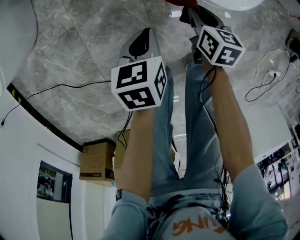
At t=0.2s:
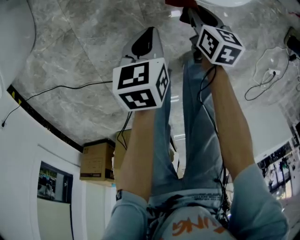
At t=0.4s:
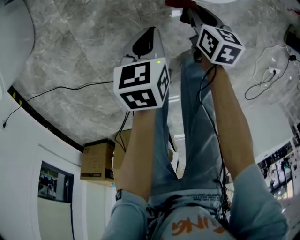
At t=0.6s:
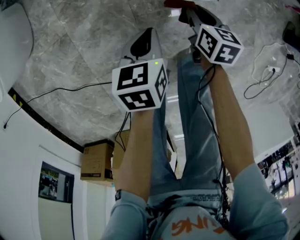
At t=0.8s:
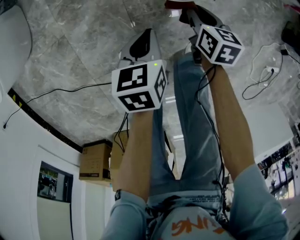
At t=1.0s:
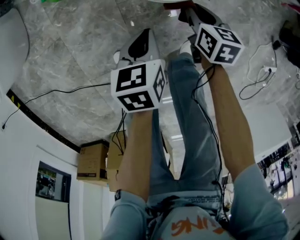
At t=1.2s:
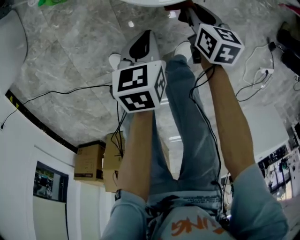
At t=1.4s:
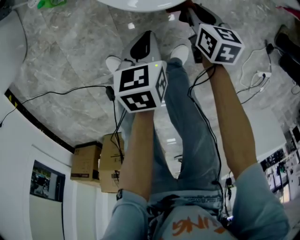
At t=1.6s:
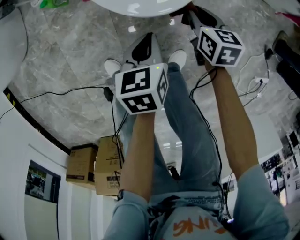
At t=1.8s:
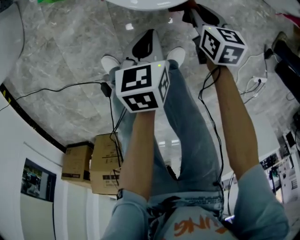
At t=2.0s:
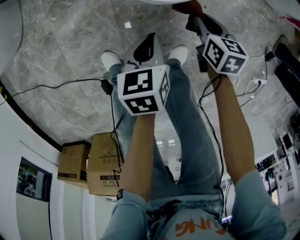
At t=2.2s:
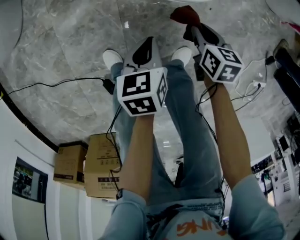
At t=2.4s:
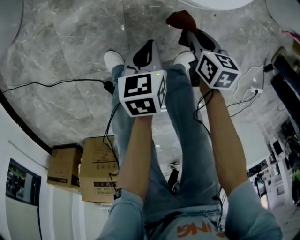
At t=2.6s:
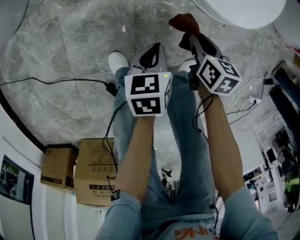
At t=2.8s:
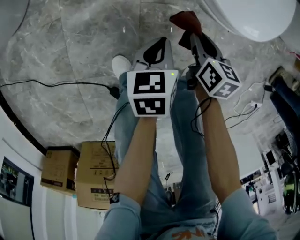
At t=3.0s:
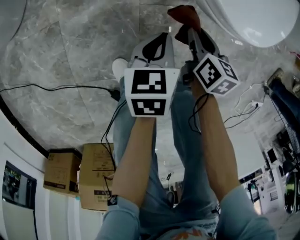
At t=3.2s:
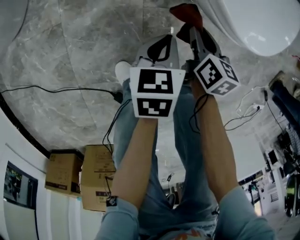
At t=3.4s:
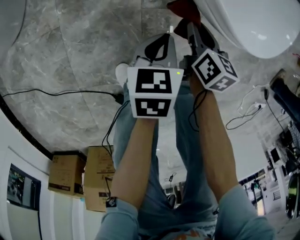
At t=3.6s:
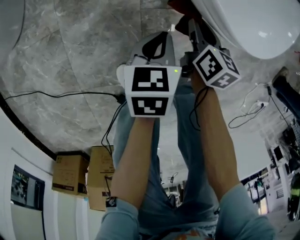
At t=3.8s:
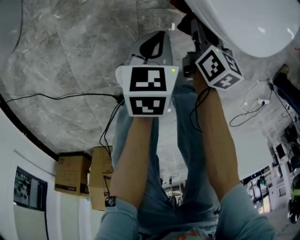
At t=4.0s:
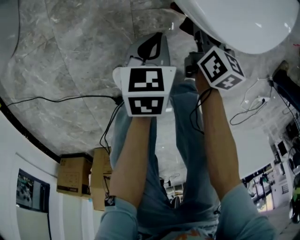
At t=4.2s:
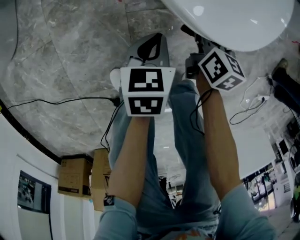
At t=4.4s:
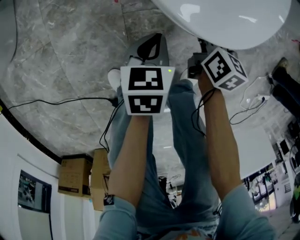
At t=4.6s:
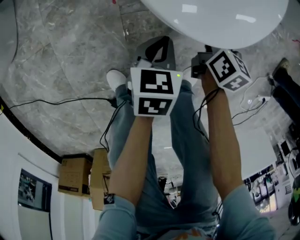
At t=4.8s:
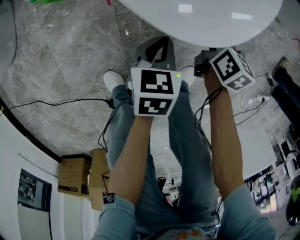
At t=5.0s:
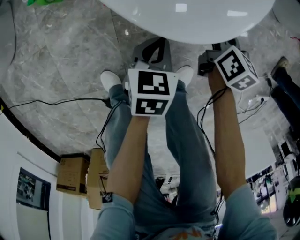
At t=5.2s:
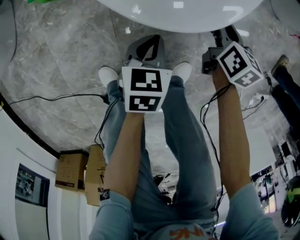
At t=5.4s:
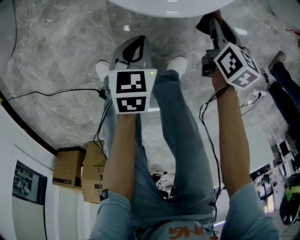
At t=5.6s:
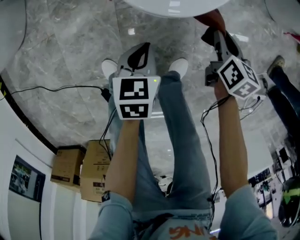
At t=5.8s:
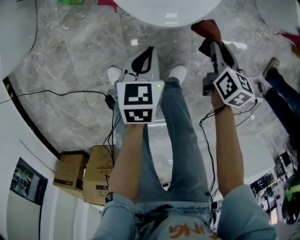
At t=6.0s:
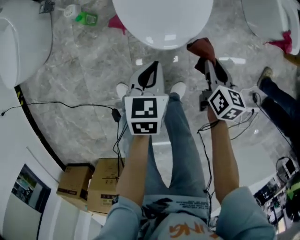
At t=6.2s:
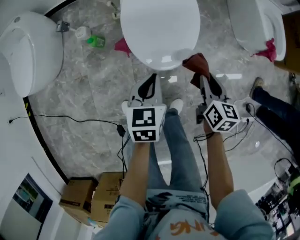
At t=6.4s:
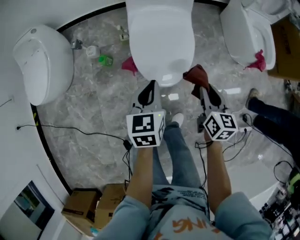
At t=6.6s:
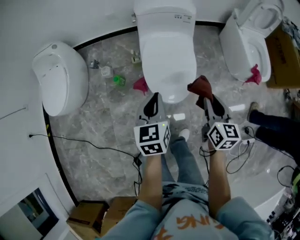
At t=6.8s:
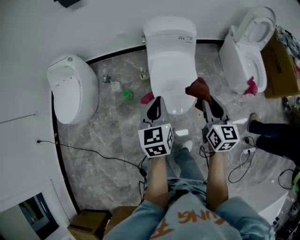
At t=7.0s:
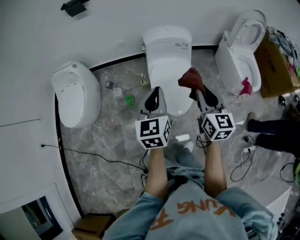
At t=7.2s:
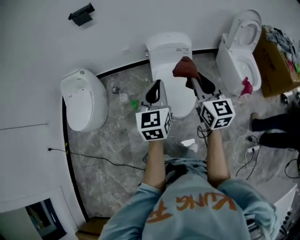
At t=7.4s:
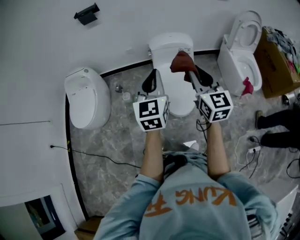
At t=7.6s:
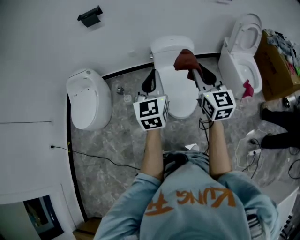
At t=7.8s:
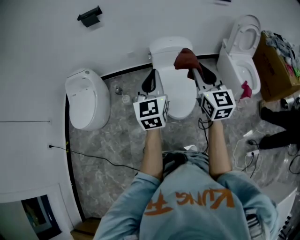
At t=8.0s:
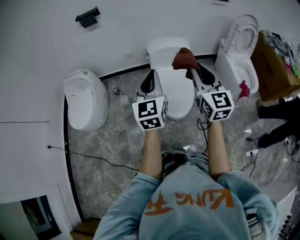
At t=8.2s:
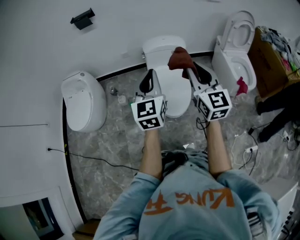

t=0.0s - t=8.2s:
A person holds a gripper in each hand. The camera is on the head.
t=0.0s - t=1.6s: The two grippers go some 20 cm to the right.
t=1.6s - t=3.2s: Both grippers move to the left and downward, roughly 20 cm.
t=3.2s - t=5.0s: The right gripper shifts approximately 20 cm to the right and forward; the left gripper moves to the right, approximately 10 cm.
t=5.0s - t=6.6s: Both grippers move upward, approximately 50 cm. The right gripper changes its angle by approximately 20 degrees. Meanwhile the left gripper rotates approximately 30 degrees.
t=6.6s - t=8.2s: Both grippers travel together upward, approximately 30 cm. The right gripper rotates some 40 degrees. Meanwhile the left gripper rotates approximately 30 degrees.

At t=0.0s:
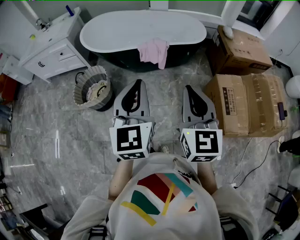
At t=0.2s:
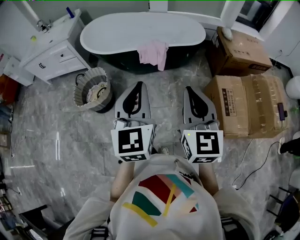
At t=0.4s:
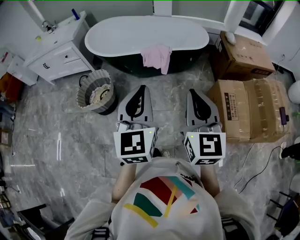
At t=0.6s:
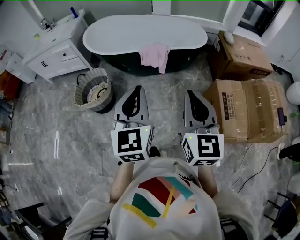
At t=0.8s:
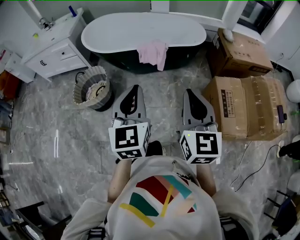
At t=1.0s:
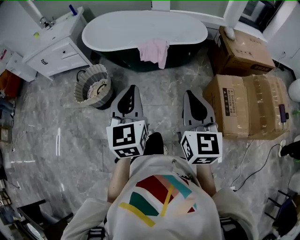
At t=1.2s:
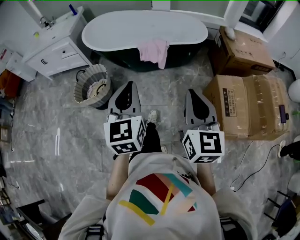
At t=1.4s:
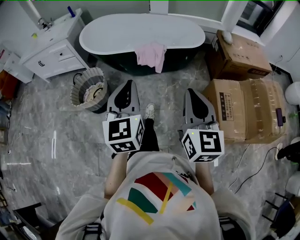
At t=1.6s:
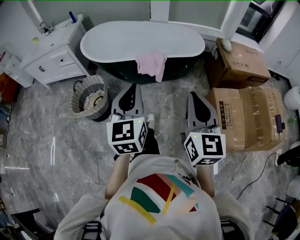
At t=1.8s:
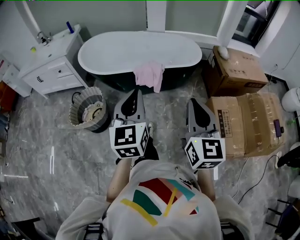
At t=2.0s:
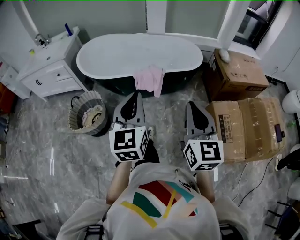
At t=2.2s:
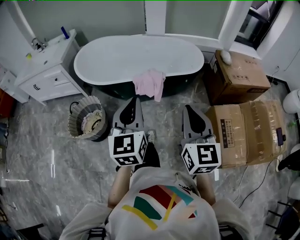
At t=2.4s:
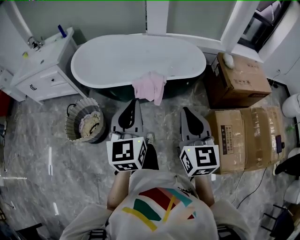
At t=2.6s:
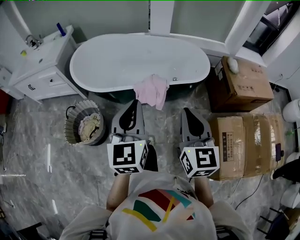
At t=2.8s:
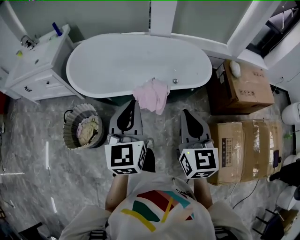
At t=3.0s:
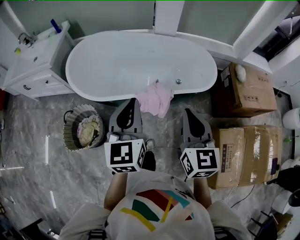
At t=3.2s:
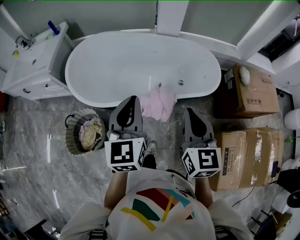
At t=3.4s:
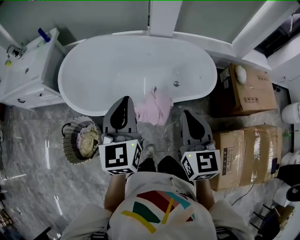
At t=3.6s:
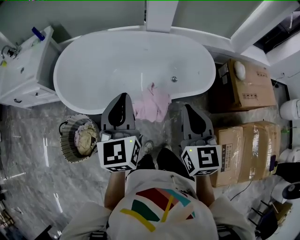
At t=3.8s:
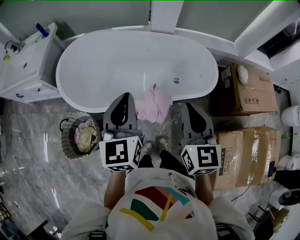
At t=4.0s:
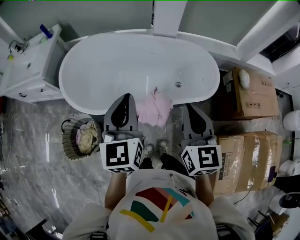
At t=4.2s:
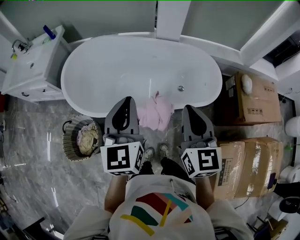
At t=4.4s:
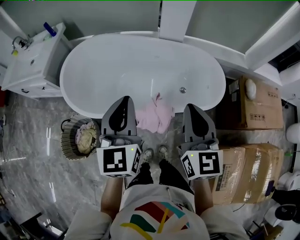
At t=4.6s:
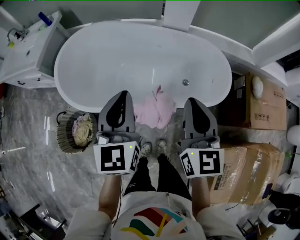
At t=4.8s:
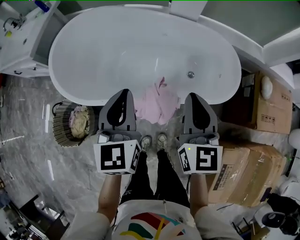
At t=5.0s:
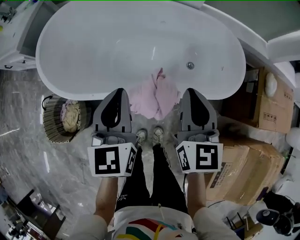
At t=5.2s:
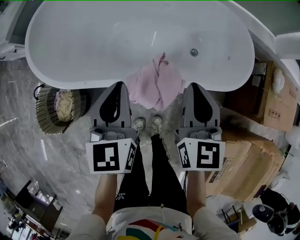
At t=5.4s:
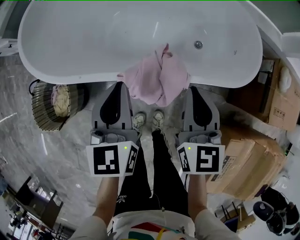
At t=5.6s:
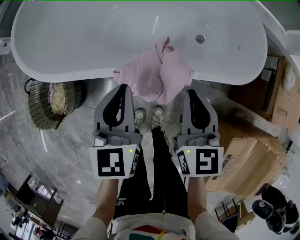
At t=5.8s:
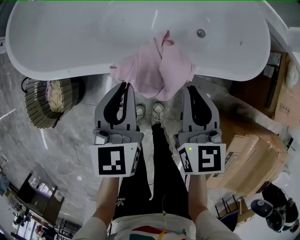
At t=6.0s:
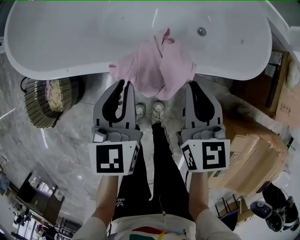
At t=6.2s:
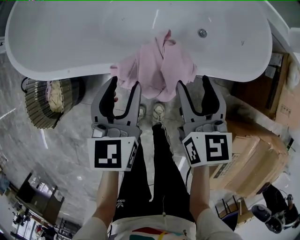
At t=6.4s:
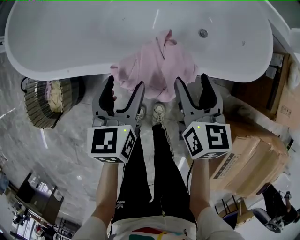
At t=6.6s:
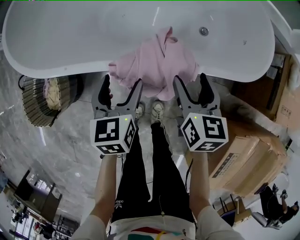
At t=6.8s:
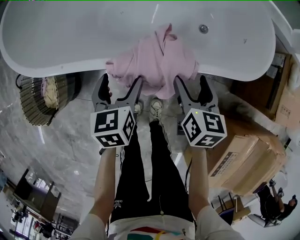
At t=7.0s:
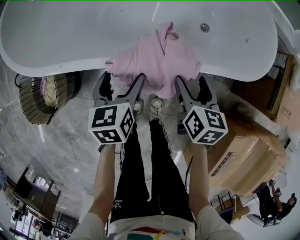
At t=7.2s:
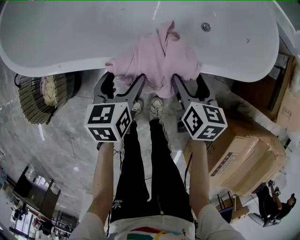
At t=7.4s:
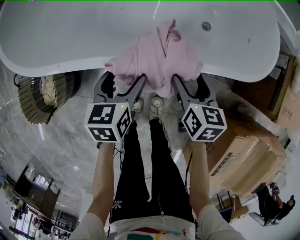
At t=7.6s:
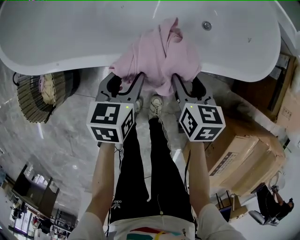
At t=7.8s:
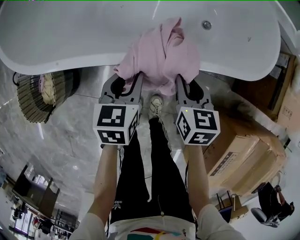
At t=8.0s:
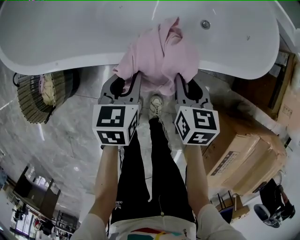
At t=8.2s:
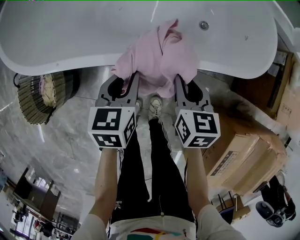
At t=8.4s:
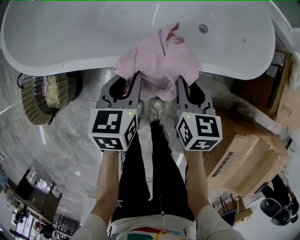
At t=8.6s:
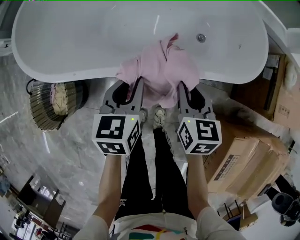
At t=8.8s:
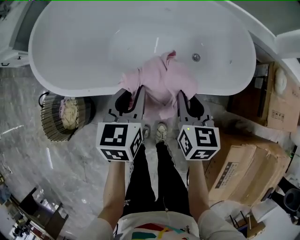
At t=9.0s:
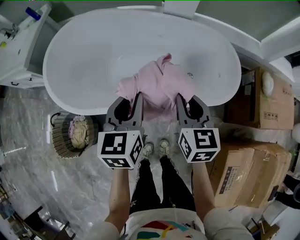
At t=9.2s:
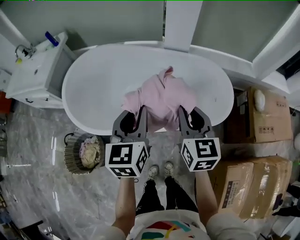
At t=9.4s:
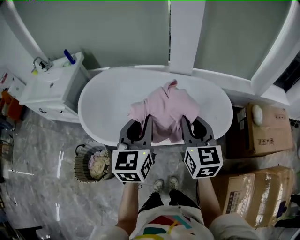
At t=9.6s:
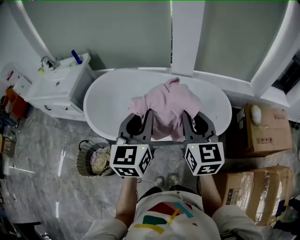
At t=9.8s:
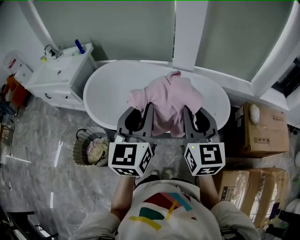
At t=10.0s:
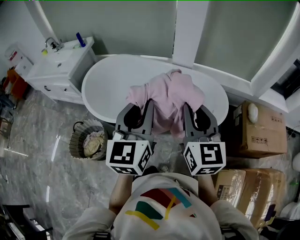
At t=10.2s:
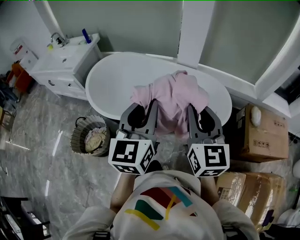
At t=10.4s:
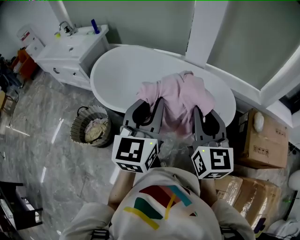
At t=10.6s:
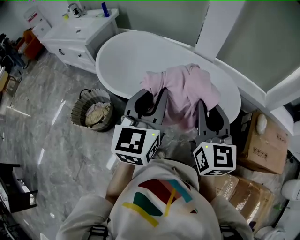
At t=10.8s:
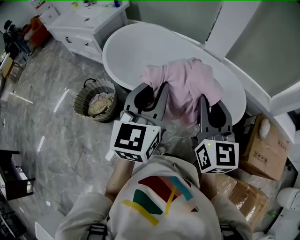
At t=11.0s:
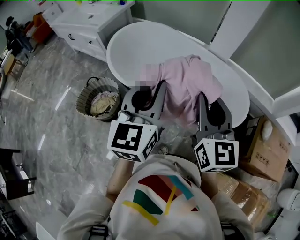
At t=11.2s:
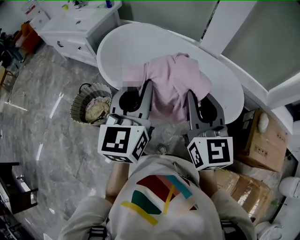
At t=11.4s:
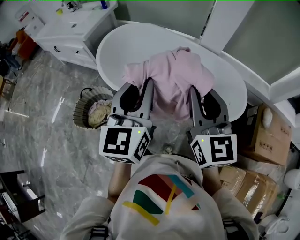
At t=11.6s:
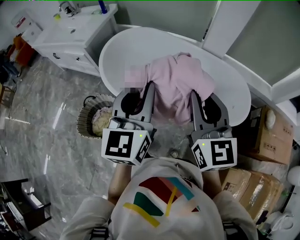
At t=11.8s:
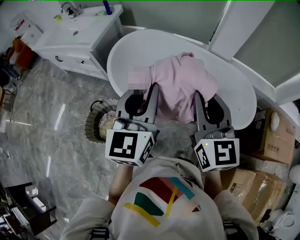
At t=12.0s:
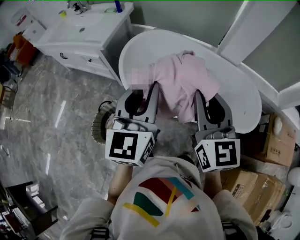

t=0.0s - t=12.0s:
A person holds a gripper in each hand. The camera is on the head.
t=0.0s - t=1.6s: The right gripper changes place by some 5 cm. The left gripper changes place by approximately 5 cm.
t=1.6s - t=3.0s: The grippers both shift forward by approximately 35 cm.
t=3.0s - t=4.4s: Both grippers travel together forward, about 15 cm.
t=4.4s - t=6.0s: The two grippers go some 35 cm downward. The right gripper turns by some 20 degrees. The left gripper turns by about 20 degrees.
t=6.0s - t=7.6s: The two grippers go approximately 15 cm downward. The right gripper changes its angle by about 20 degrees, and opens up, while the left gripper swivels roughly 20 degrees, and opens.
t=7.6s - t=9.0s: The two grippers go about 30 cm upward. The right gripper rotates some 20 degrees, and closes up; the left gripper turns by roughly 20 degrees.
t=9.0s - t=10.4s: The two grippers go approximately 30 cm upward and backward. The right gripper turns by some 30 degrees. Meanwhile the left gripper changes its angle by about 20 degrees.
t=10.4s - t=12.0s: Both grippers move to the left and forward, roughly 35 cm.

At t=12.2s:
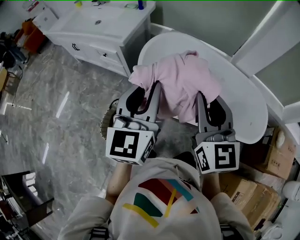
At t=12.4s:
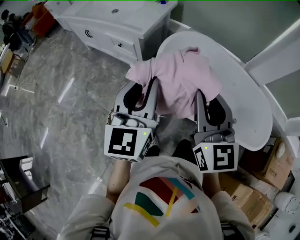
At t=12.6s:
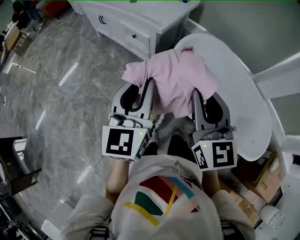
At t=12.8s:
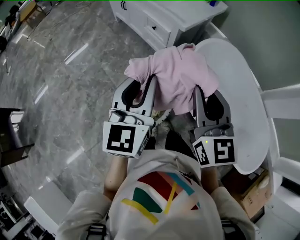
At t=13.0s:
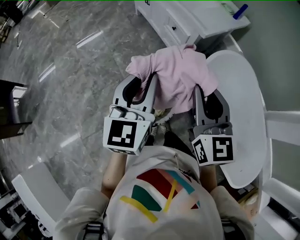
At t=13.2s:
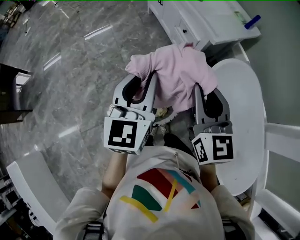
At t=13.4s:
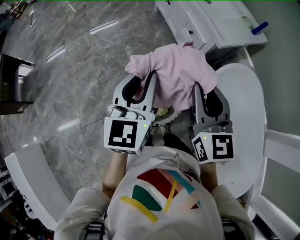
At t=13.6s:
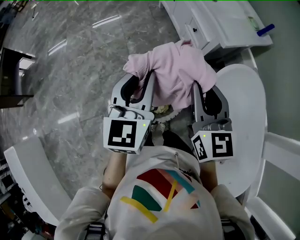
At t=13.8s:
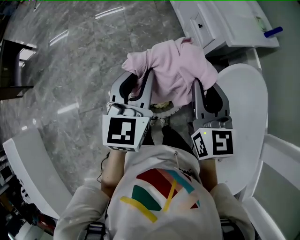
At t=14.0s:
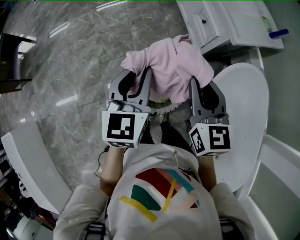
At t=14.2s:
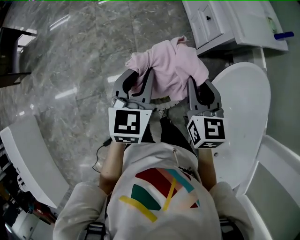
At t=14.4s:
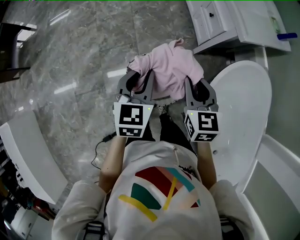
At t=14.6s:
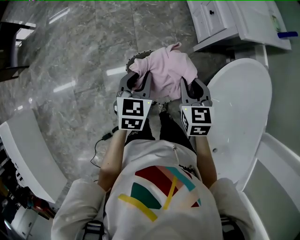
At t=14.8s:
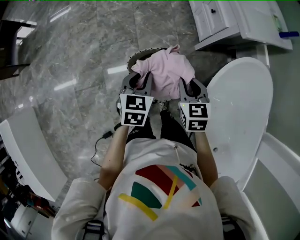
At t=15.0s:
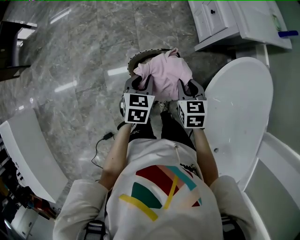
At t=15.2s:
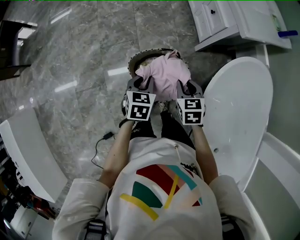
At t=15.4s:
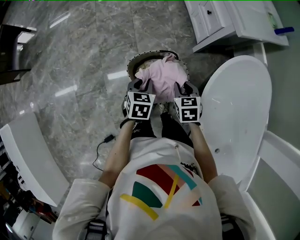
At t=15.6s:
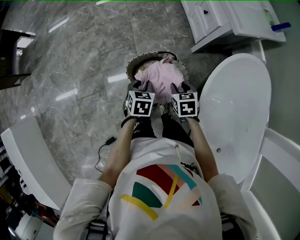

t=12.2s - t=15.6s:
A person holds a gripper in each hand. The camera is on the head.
t=12.2s - t=13.8s: The right gripper ends up about 35 cm from where it was, and changes its angle by about 50 degrees; the left gripper changes place by approximately 35 cm, and swivels approximately 50 degrees.
t=13.8s - t=15.6s: Both grippers travel together downward, roughly 30 cm. The right gripper points its fingers about 40 degrees further downward. Meanwhile the left gripper tips its fingers downward by approximately 40 degrees.
